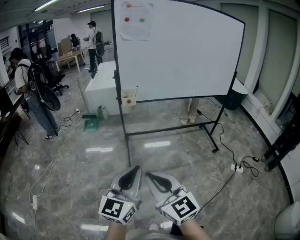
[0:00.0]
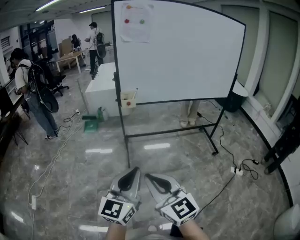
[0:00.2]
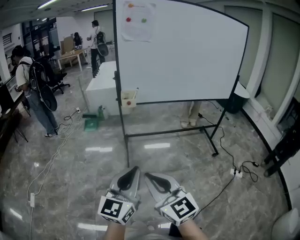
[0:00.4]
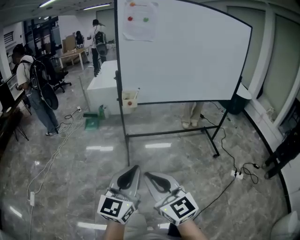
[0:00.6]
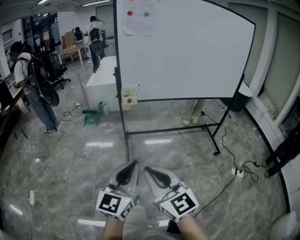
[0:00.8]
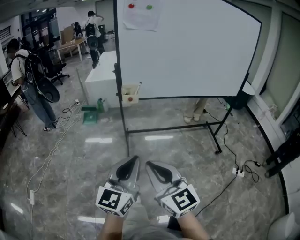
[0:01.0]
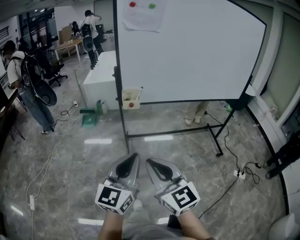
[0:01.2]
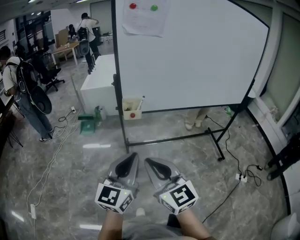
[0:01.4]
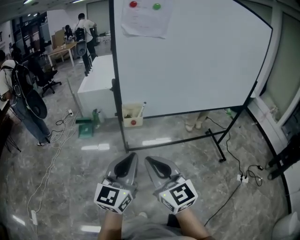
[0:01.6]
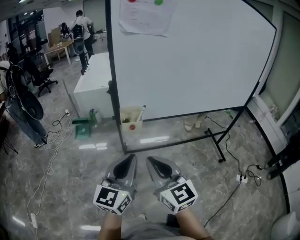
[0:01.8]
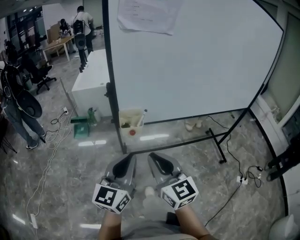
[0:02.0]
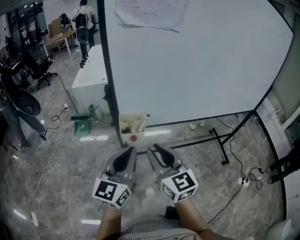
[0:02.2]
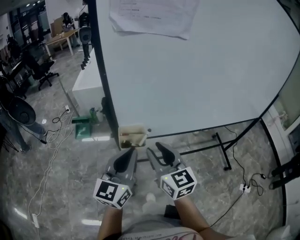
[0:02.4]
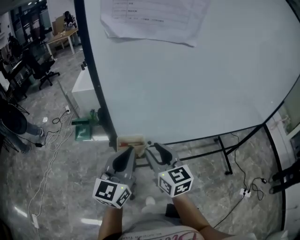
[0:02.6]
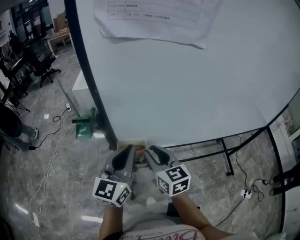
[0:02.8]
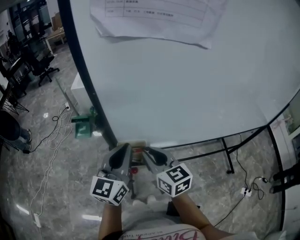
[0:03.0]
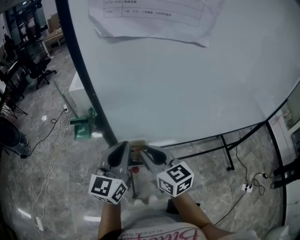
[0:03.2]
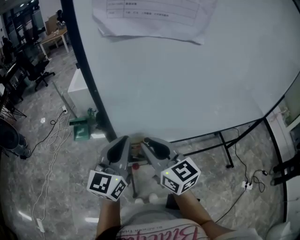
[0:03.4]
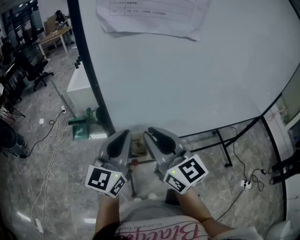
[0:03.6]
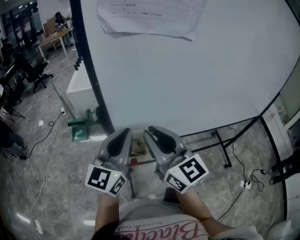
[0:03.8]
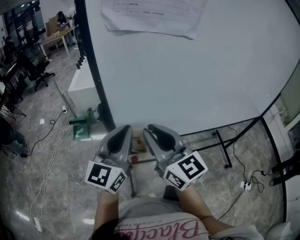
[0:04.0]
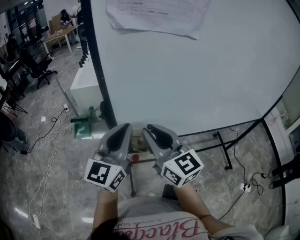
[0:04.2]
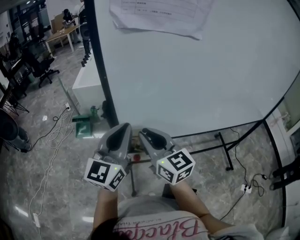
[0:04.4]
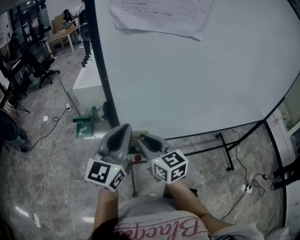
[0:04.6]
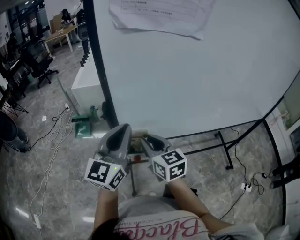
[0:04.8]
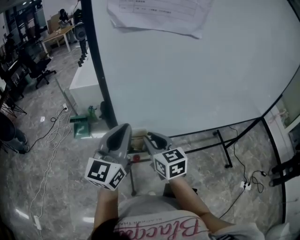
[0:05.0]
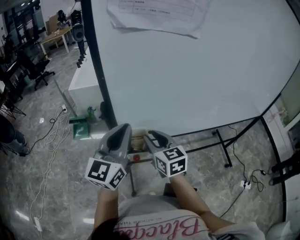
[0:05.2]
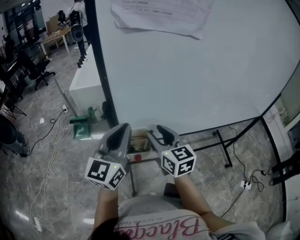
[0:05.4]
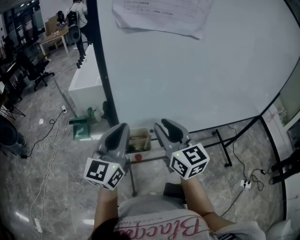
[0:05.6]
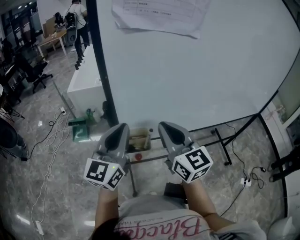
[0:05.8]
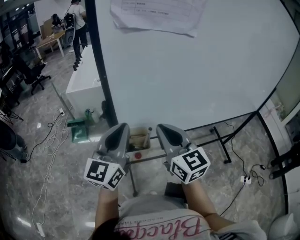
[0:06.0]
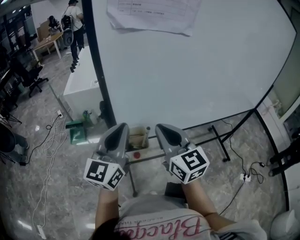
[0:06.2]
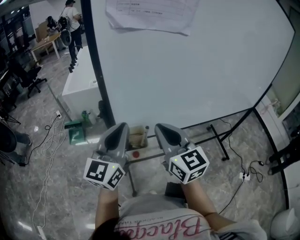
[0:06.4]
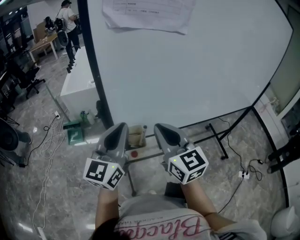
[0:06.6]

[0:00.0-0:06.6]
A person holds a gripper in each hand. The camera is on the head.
0:00.0 to 0:01.6: The grippers both shift forward by roughly 25 cm.
0:01.6 to 0:03.2: Both grippers move forward, some 30 cm. The right gripper turns by some 20 degrees.
0:03.2 to 0:05.0: The right gripper moves roughly 10 cm upward and comes back.
0:05.0 to 0:06.6: The right gripper moves upward, some 10 cm, and opens, then closes once more.

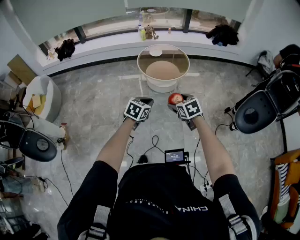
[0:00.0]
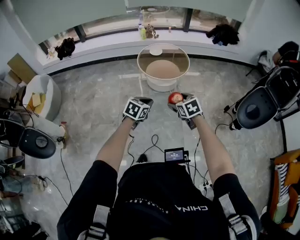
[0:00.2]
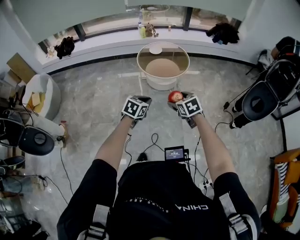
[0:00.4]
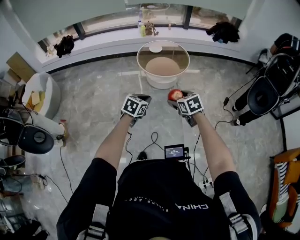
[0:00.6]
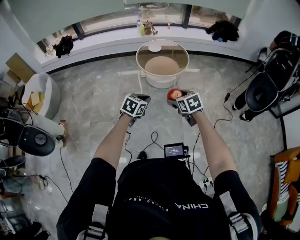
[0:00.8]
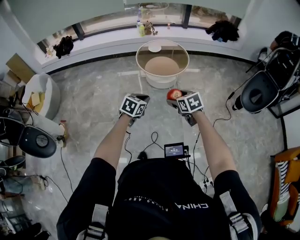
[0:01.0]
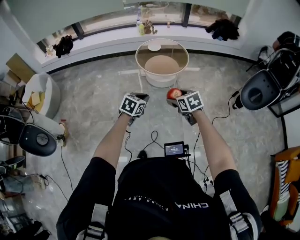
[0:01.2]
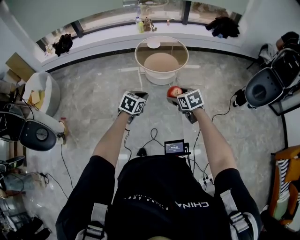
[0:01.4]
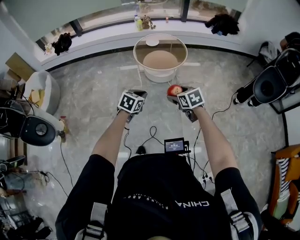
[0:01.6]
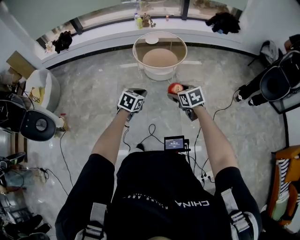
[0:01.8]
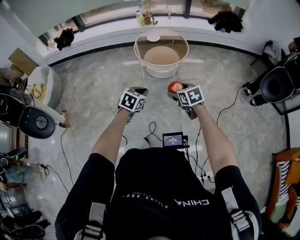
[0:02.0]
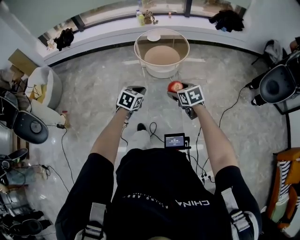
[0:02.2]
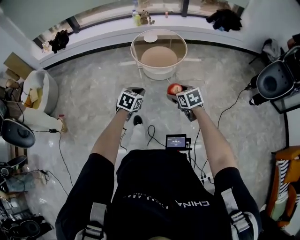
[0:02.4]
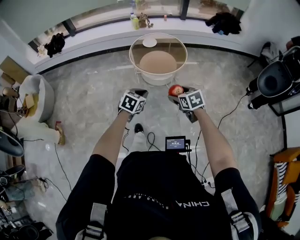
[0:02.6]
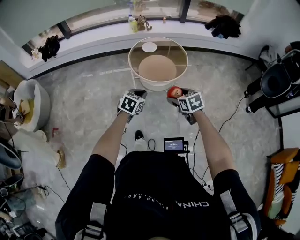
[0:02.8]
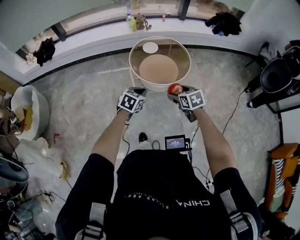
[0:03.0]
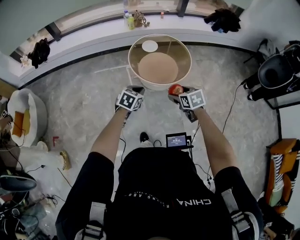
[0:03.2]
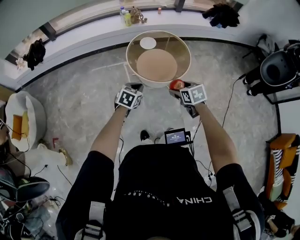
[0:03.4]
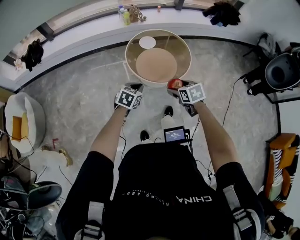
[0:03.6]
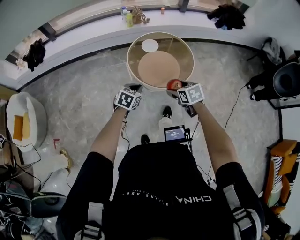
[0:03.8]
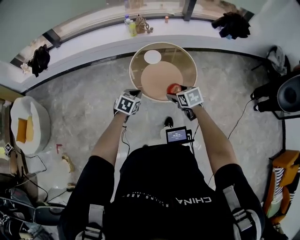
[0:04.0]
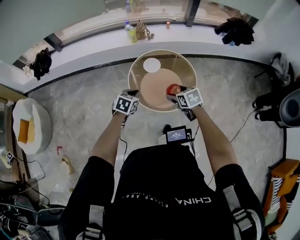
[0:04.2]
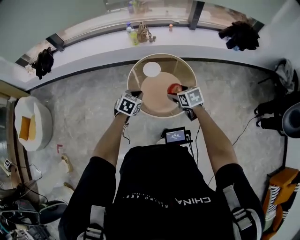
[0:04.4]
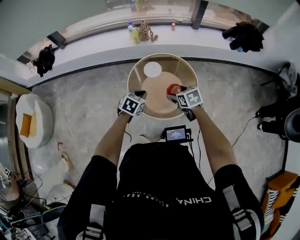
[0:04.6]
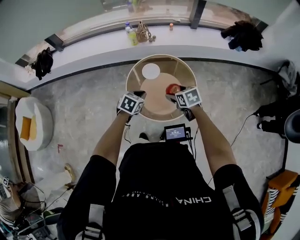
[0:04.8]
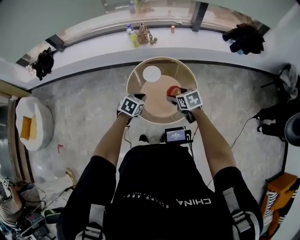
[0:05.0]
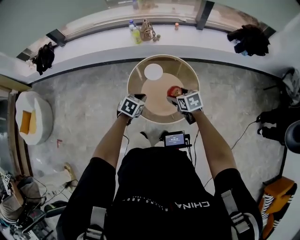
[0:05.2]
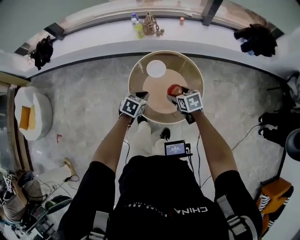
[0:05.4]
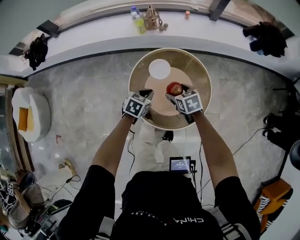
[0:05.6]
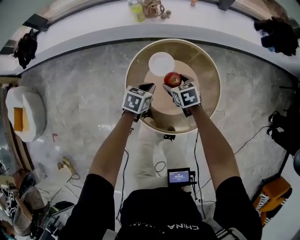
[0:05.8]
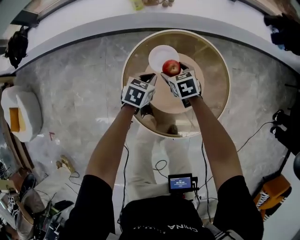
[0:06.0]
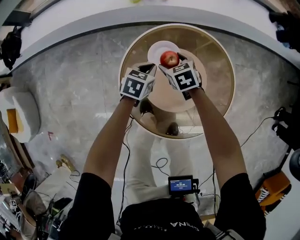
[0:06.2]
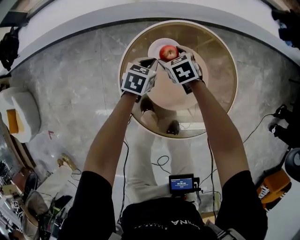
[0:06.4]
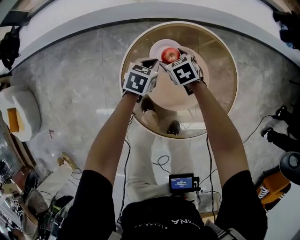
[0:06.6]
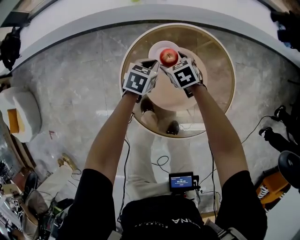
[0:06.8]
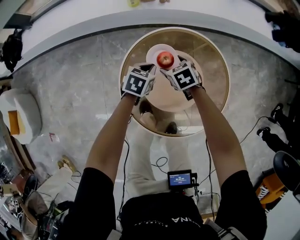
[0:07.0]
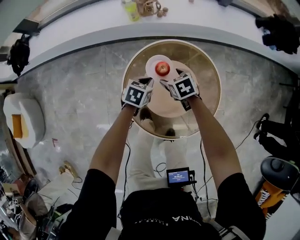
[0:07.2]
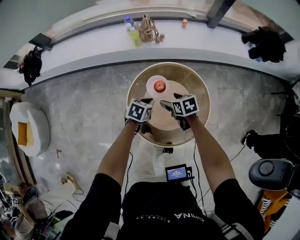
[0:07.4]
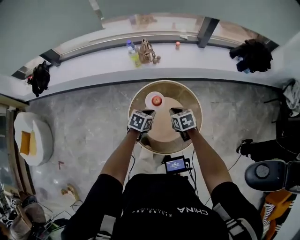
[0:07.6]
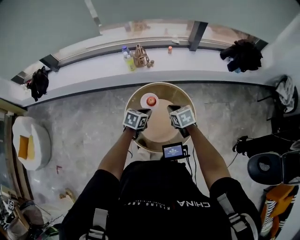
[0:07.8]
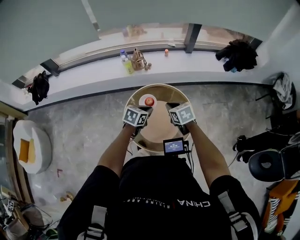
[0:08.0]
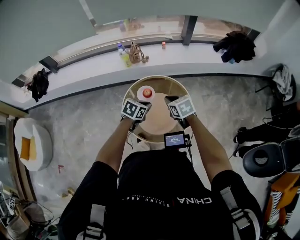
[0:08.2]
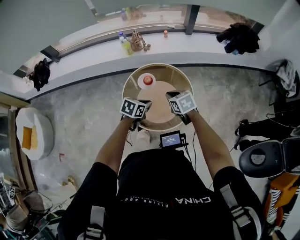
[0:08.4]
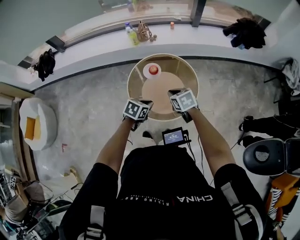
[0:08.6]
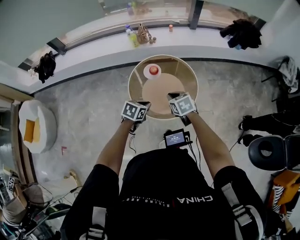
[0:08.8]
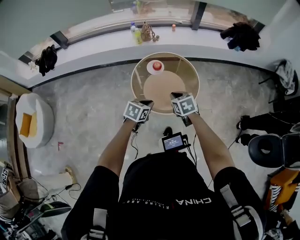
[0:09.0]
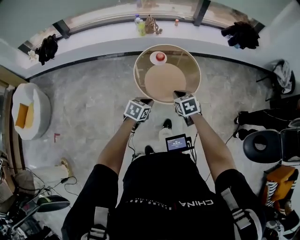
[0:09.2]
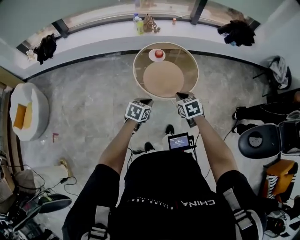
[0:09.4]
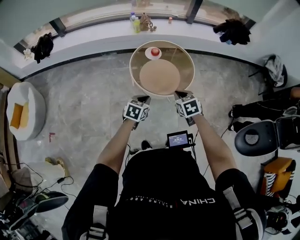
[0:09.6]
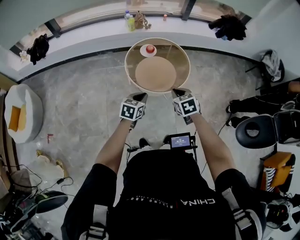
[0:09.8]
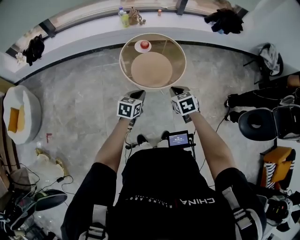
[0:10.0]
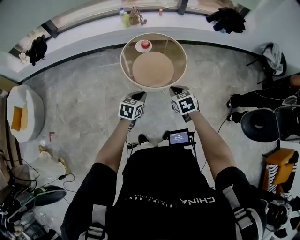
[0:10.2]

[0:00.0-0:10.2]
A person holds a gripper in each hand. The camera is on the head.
0:00.0 to 0:01.4: There are only small adjustments of the grippers.
0:01.4 to 0:03.0: The two grippers go roughly 30 cm forward.
0:03.0 to 0:04.4: The grippers both shift forward by approximately 40 cm.
0:04.4 to 0:05.8: Both grippers travel together forward and downward, some 40 cm.
0:05.8 to 0:07.2: The left gripper is displaced forward and downward by approximately 10 cm. Meanwhile the right gripper heads forward, covering roughly 5 cm, and travels downward and back again, roughly 15 cm each way.
0:07.2 to 0:08.8: The two grippers go about 50 cm backward and upward. The right gripper closes up.
0:08.8 to 0:10.2: The grippers both shift backward by roughly 25 cm.
